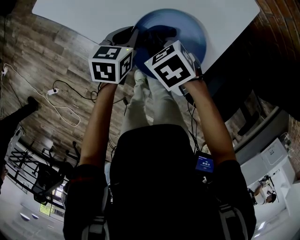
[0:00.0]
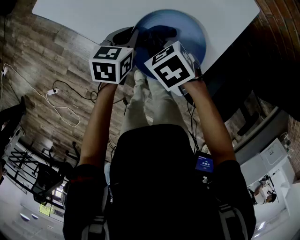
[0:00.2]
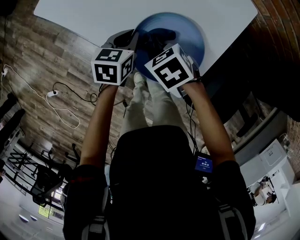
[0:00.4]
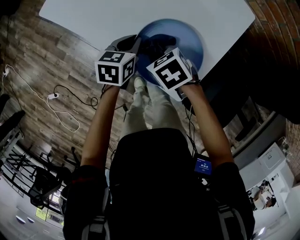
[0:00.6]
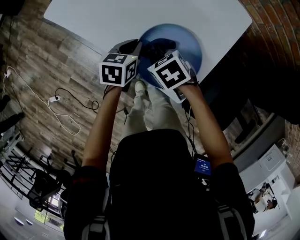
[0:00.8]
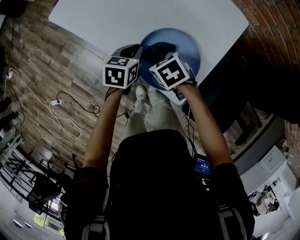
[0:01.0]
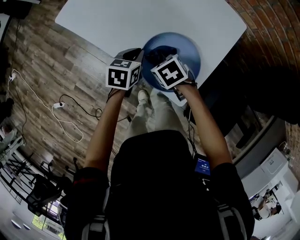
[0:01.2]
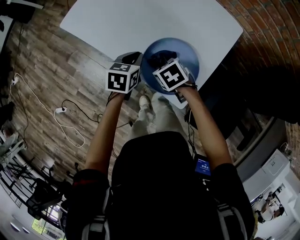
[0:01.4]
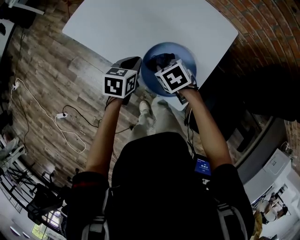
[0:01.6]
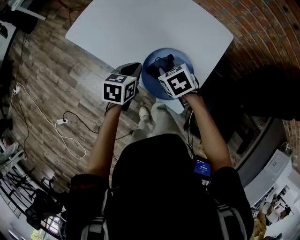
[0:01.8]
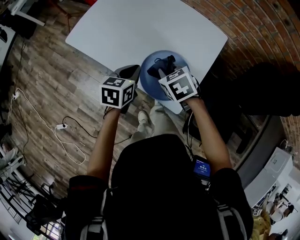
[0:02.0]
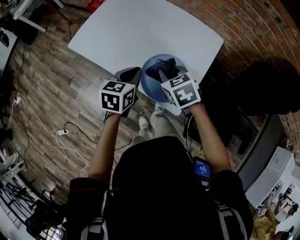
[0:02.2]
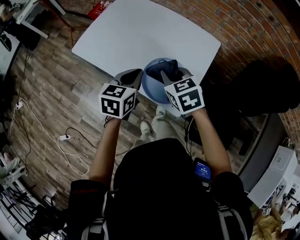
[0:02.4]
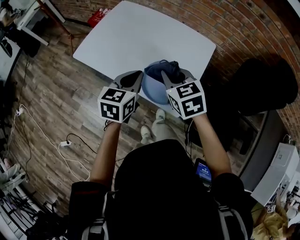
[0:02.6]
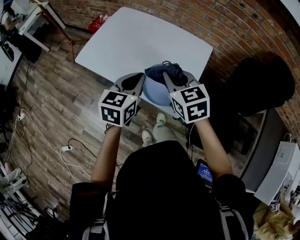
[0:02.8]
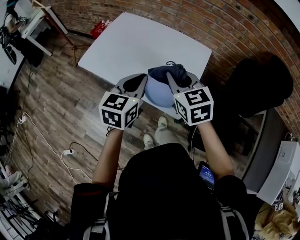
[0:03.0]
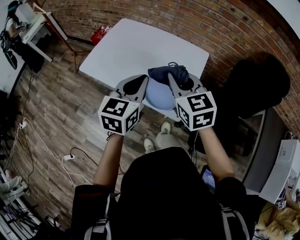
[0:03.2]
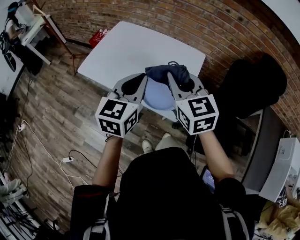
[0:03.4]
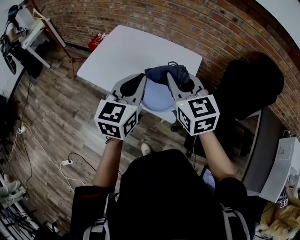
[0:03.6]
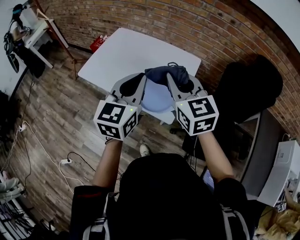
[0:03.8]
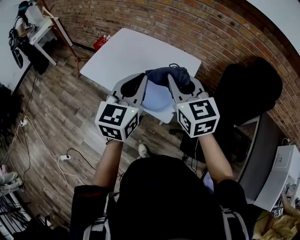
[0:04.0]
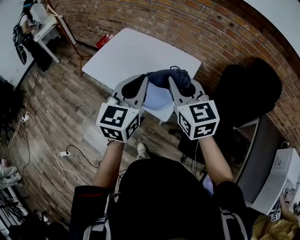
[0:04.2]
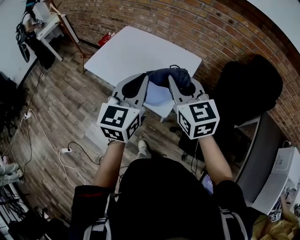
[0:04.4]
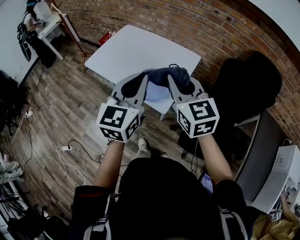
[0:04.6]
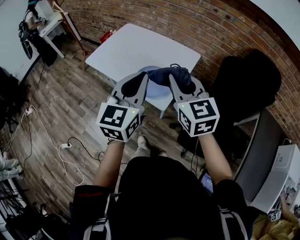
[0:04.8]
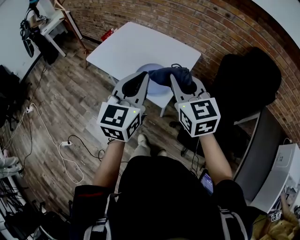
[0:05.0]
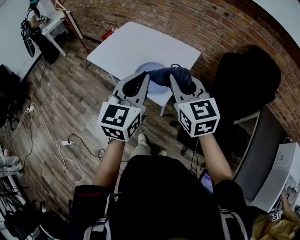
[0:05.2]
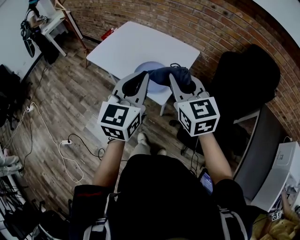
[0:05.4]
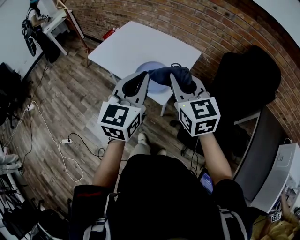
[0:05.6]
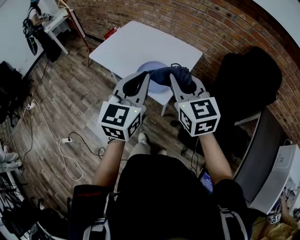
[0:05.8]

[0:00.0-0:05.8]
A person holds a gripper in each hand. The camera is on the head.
0:00.0 to 0:01.4: The grippers make only small movements.
0:01.4 to 0:02.8: Both grippers move upward, about 25 cm. The right gripper points its fingers roughly 40 degrees further upward. Meanwhile the left gripper changes its angle by about 30 degrees.
0:02.8 to 0:04.4: The grippers both shift upward, backward and to the right by some 20 cm. The left gripper changes its angle by some 20 degrees. The right gripper rotates about 20 degrees.
0:04.4 to 0:05.8: Both grippers travel together backward, about 10 cm.

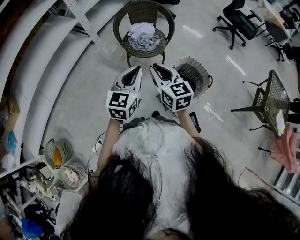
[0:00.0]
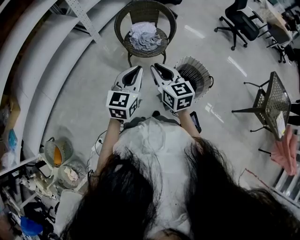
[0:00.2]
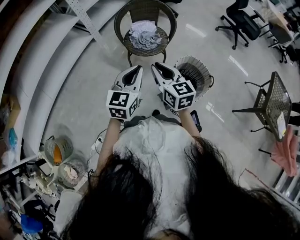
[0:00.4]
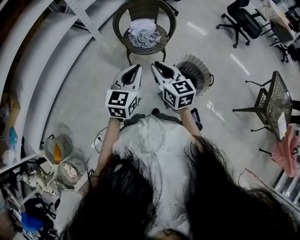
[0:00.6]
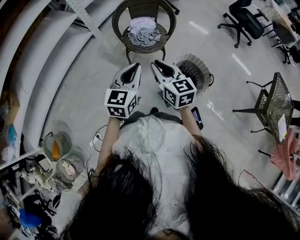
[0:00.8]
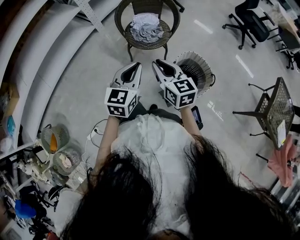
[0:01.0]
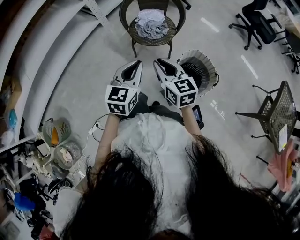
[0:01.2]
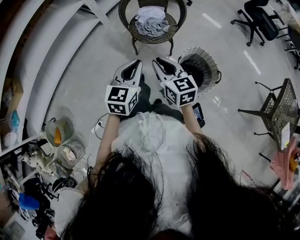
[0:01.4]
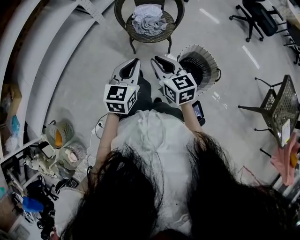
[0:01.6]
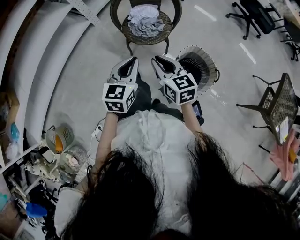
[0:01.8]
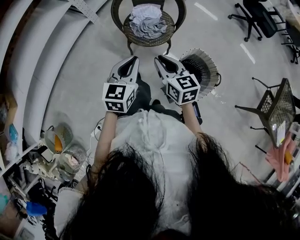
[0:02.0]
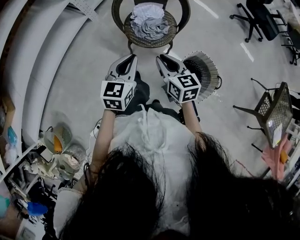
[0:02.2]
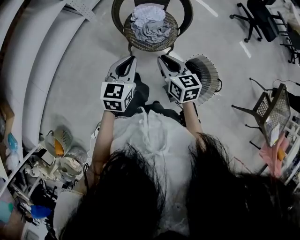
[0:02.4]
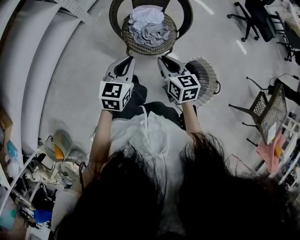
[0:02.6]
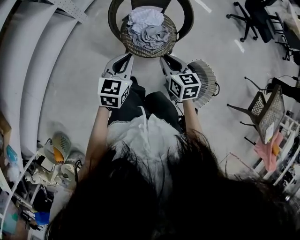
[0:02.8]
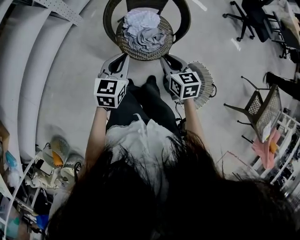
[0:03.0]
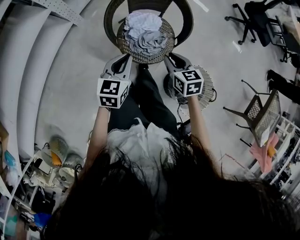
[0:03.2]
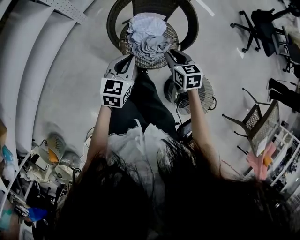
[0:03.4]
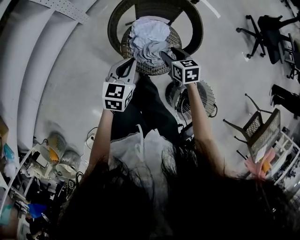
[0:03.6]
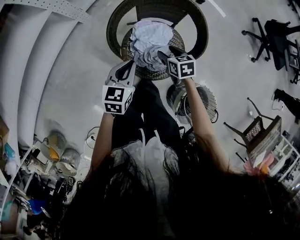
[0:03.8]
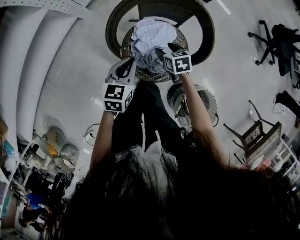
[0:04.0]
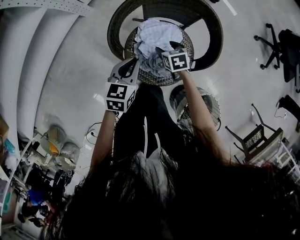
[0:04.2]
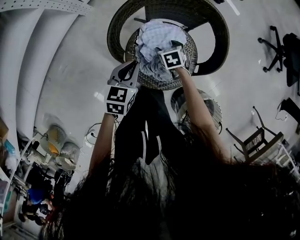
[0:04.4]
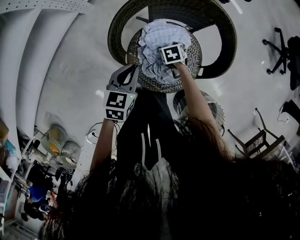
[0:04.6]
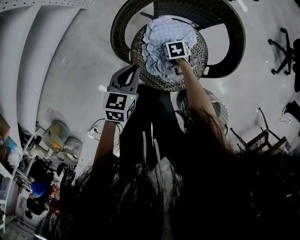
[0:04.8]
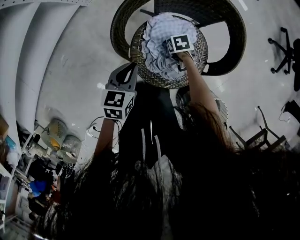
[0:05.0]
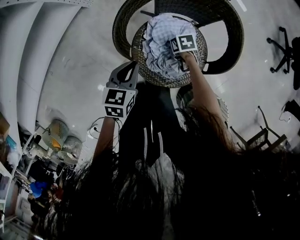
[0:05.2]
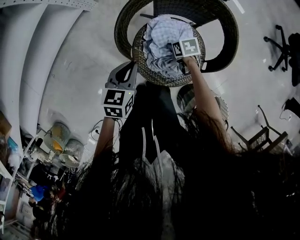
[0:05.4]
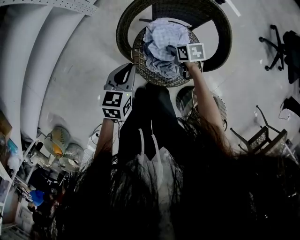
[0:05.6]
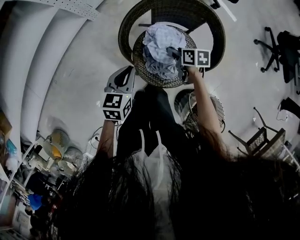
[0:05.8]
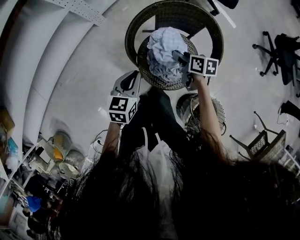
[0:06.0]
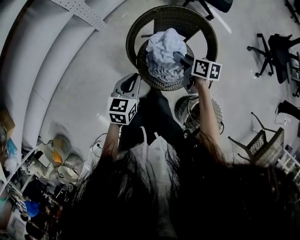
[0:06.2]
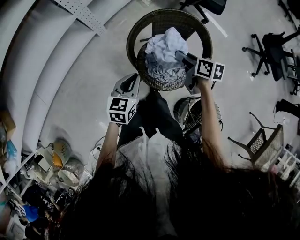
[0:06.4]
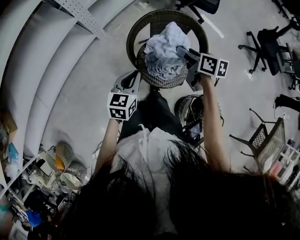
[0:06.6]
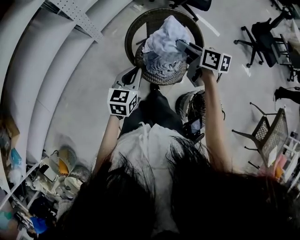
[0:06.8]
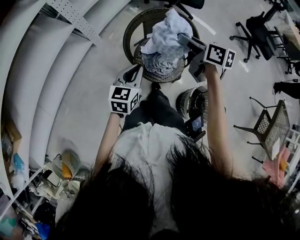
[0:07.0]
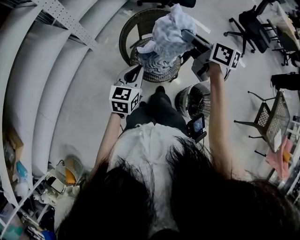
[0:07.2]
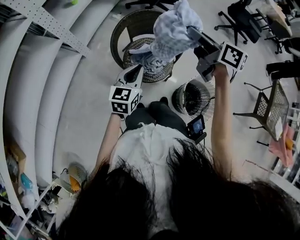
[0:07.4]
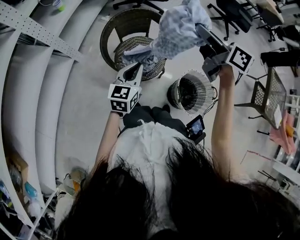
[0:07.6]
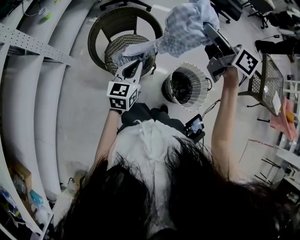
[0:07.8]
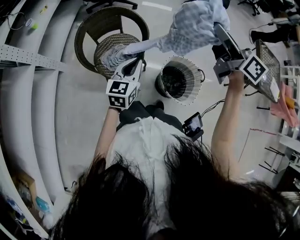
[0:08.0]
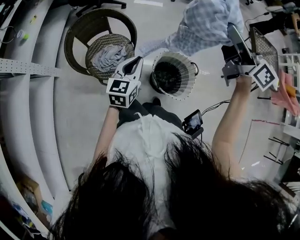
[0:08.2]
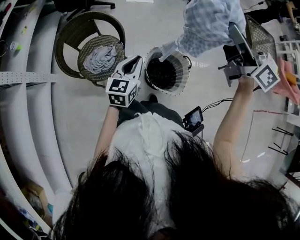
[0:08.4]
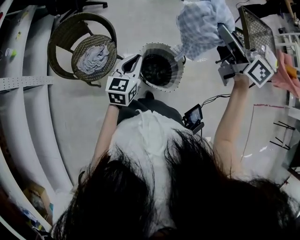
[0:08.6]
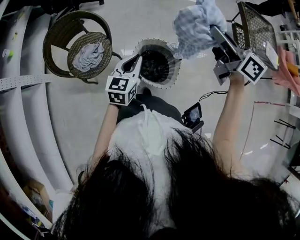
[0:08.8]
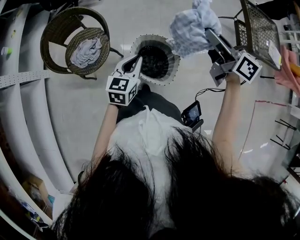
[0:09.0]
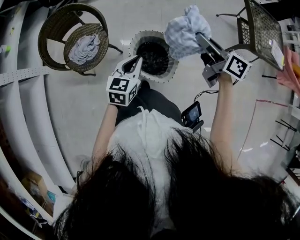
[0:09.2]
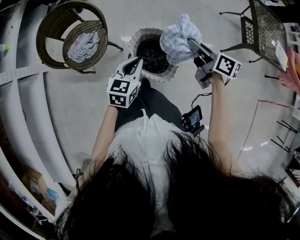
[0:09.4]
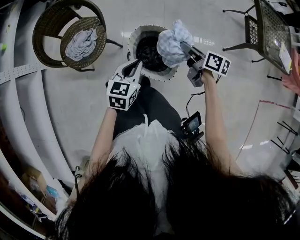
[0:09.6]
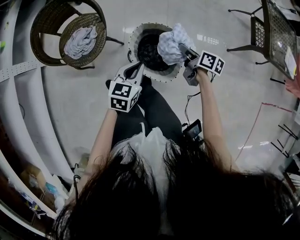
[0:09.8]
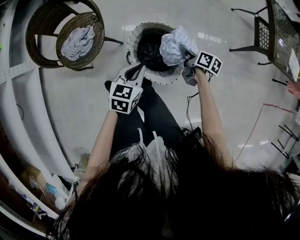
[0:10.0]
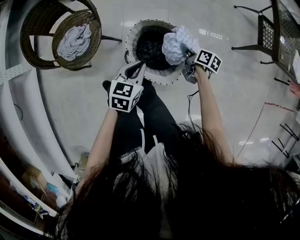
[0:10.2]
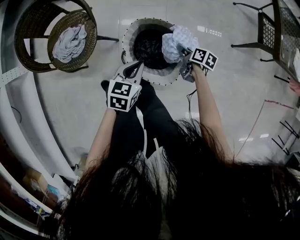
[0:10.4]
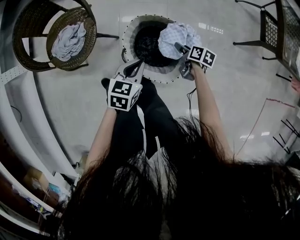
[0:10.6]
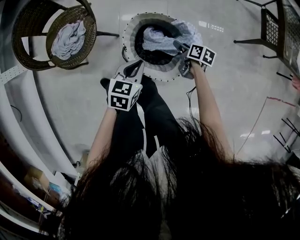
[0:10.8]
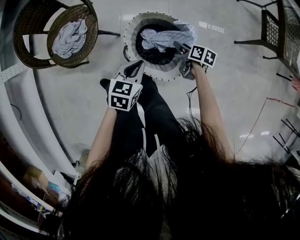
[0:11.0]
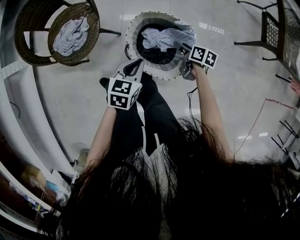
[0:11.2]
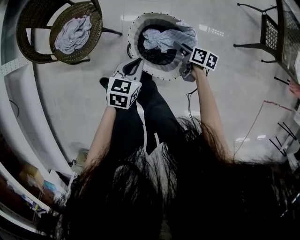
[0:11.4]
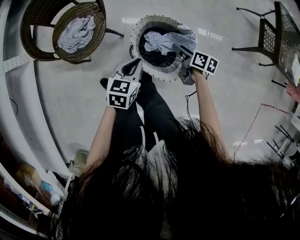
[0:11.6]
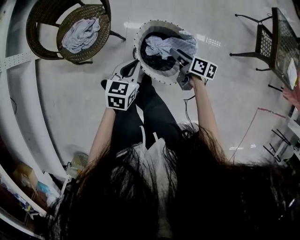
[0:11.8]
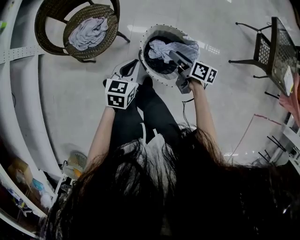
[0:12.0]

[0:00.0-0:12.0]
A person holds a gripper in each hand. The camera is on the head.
0:00.0 to 0:01.6: The grippers both shift downward by roughly 5 cm.
0:01.6 to 0:03.0: The right gripper is displaced forward and downward by about 30 cm, and rotates roughly 20 degrees. Meanwhile the left gripper shifts some 30 cm forward.
0:03.0 to 0:04.4: The left gripper goes about 25 cm downward and forward; the right gripper goes approximately 40 cm downward and forward, changes its angle by about 40 degrees, and opens.
0:04.4 to 0:06.0: The right gripper shifts about 20 cm upward, changes its angle by approximately 40 degrees, and closes up; the left gripper shifts roughly 10 cm upward.
0:06.0 to 0:07.6: The left gripper goes roughly 20 cm upward, and changes its angle by some 30 degrees; the right gripper travels upward by some 40 cm, and tilts its fingers approximately 40 degrees upward.
0:07.6 to 0:09.0: Both grippers move to the right, roughly 40 cm. The left gripper rotates about 20 degrees. Meanwhile the right gripper swivels approximately 20 degrees.
0:09.0 to 0:10.4: The right gripper moves downward, some 50 cm, and tips its fingers downward by about 40 degrees, while the left gripper heads downward, covering some 20 cm.
0:10.4 to 0:12.0: The right gripper heads to the left and upward, covering approximately 20 cm, and rotates some 20 degrees. Meanwhile the left gripper is displaced to the left and upward by approximately 15 cm.

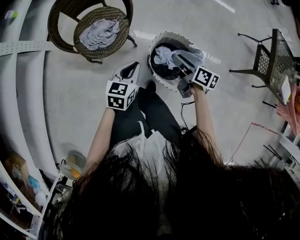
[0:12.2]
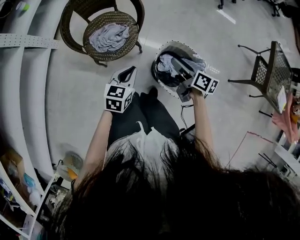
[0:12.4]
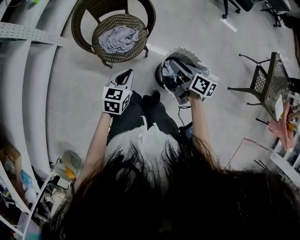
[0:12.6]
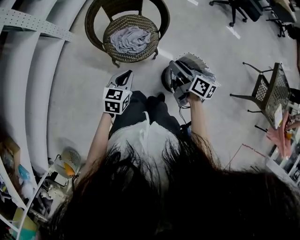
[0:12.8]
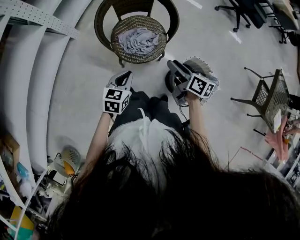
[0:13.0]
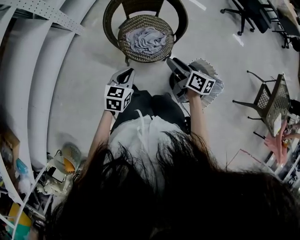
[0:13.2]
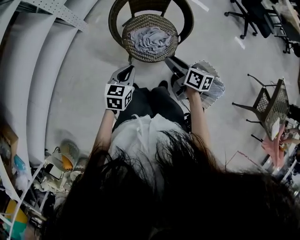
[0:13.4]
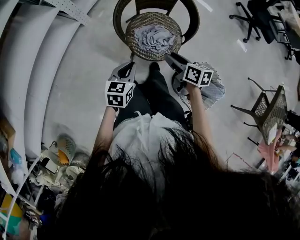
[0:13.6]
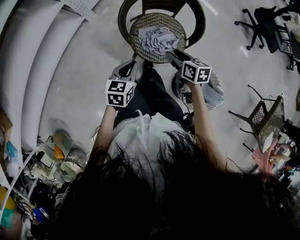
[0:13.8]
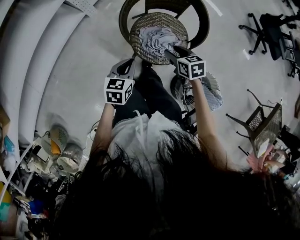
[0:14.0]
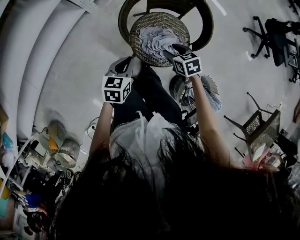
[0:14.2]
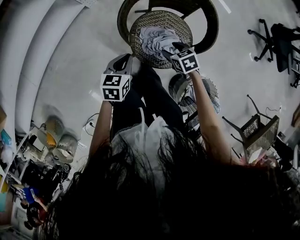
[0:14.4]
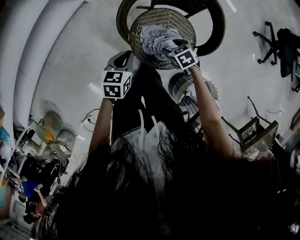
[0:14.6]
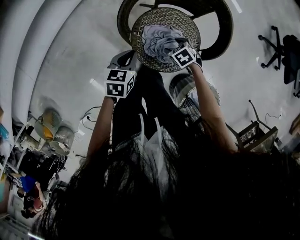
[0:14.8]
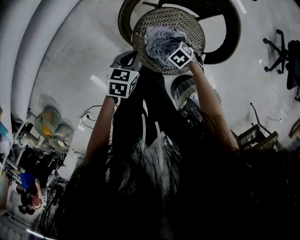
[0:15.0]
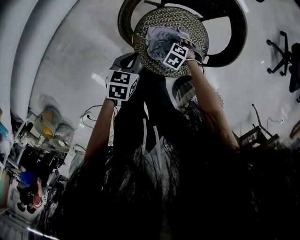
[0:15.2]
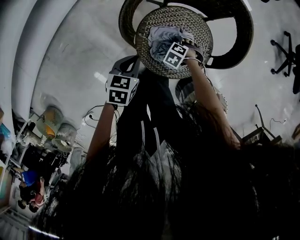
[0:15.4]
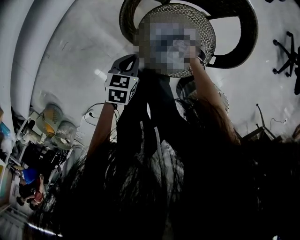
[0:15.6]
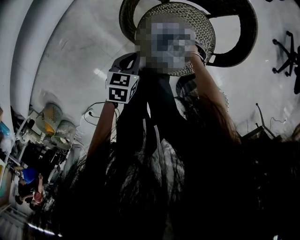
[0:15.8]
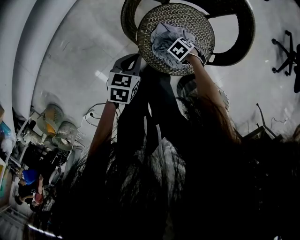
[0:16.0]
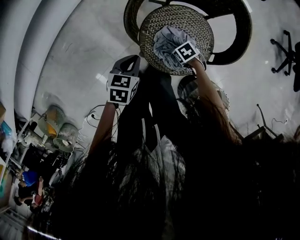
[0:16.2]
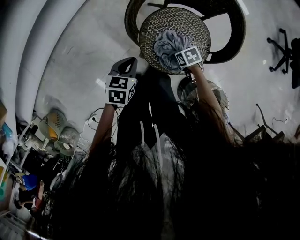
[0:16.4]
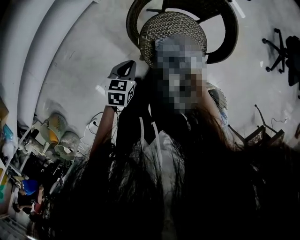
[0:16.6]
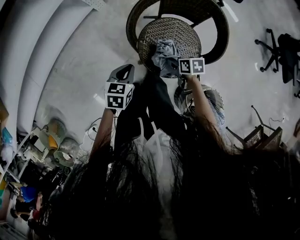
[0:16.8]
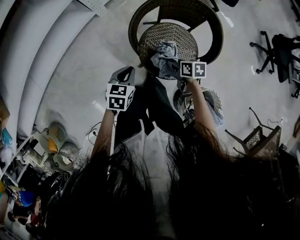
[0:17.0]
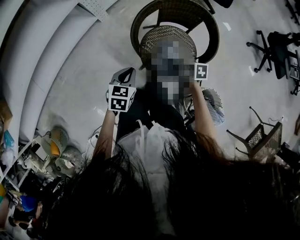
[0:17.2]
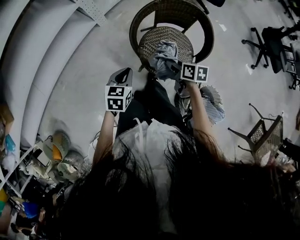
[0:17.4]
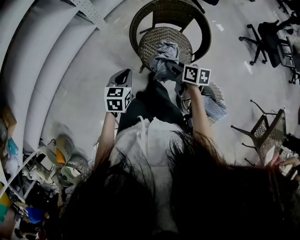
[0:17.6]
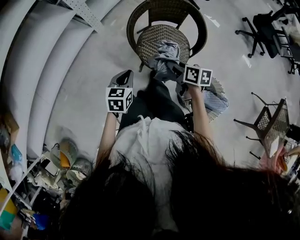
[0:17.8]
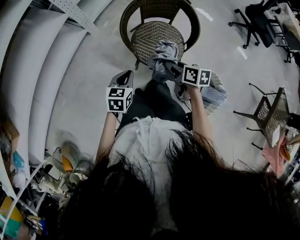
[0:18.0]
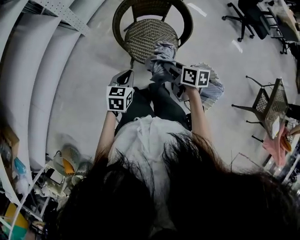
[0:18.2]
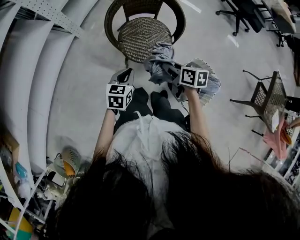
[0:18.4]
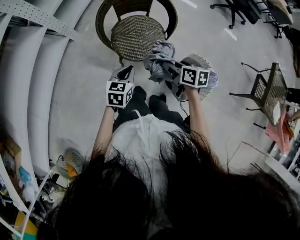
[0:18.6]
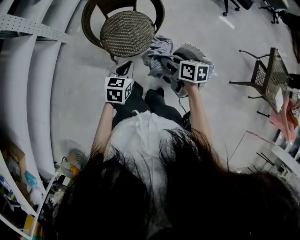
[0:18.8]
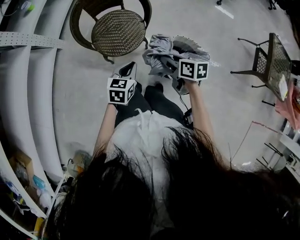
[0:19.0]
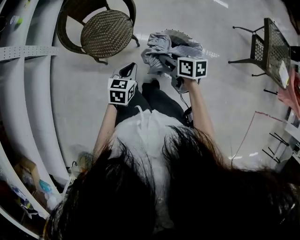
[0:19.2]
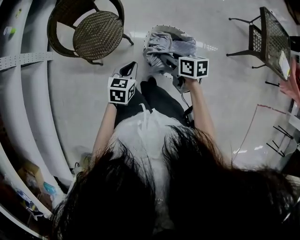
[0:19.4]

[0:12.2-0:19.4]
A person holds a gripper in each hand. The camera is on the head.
0:12.2 to 0:13.6: Both grippers move to the left, about 35 cm. The left gripper changes its angle by some 20 degrees; the right gripper rotates about 30 degrees.
0:13.6 to 0:15.0: The right gripper is displaced downward by approximately 30 cm, and angles its fingers downward, by about 40 degrees; the left gripper is displaced downward by about 15 cm, and rotates some 20 degrees.
0:15.0 to 0:16.6: The right gripper goes downward and returns, approximately 10 cm each way, rolls clockwise, seen from behind, by approximately 40 degrees, and closes its fingers; the left gripper moves about 10 cm.
0:16.6 to 0:18.0: The left gripper goes approximately 15 cm upward. The right gripper heads upward, covering about 30 cm, and swivels approximately 40 degrees.
0:18.0 to 0:19.4: The right gripper changes place by some 35 cm, while the left gripper moves about 35 cm, and turns by about 30 degrees.
